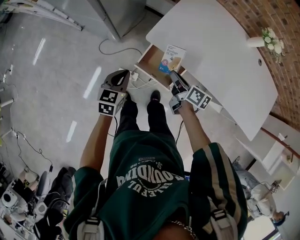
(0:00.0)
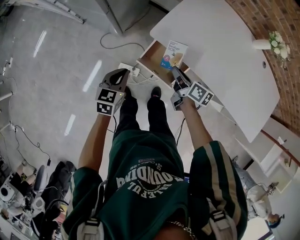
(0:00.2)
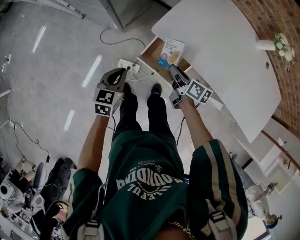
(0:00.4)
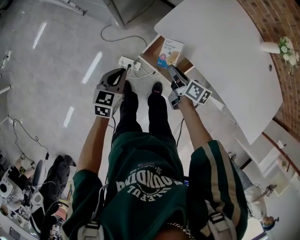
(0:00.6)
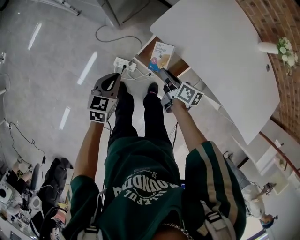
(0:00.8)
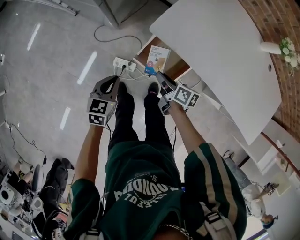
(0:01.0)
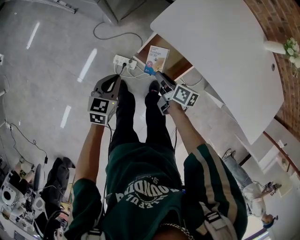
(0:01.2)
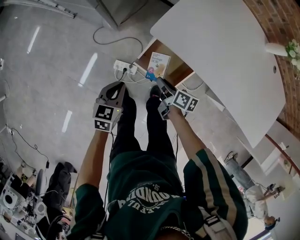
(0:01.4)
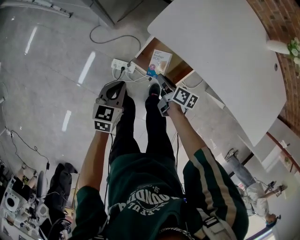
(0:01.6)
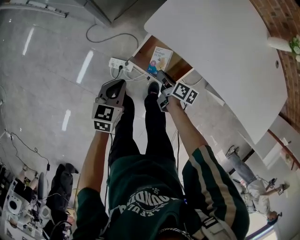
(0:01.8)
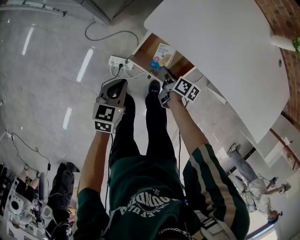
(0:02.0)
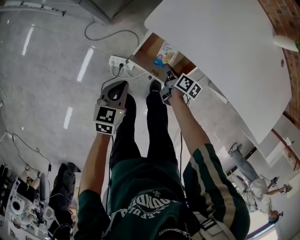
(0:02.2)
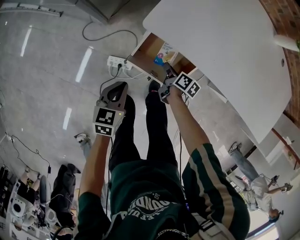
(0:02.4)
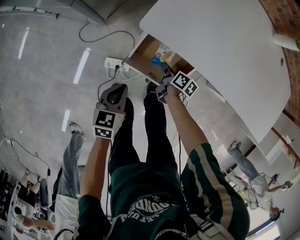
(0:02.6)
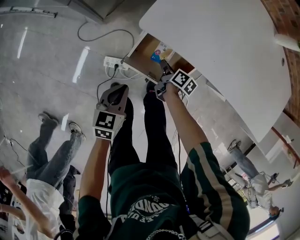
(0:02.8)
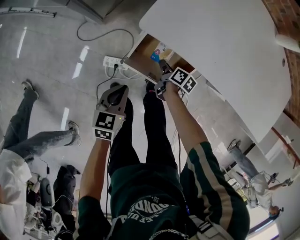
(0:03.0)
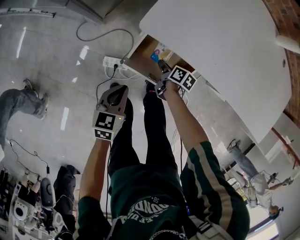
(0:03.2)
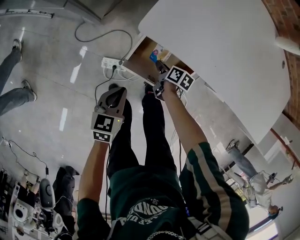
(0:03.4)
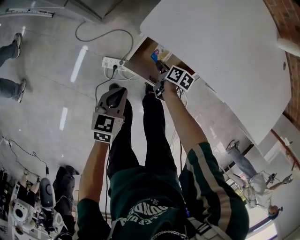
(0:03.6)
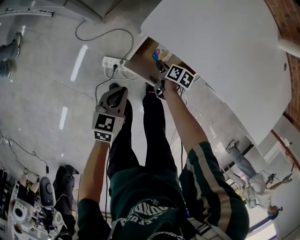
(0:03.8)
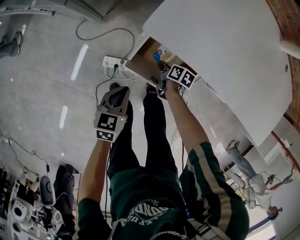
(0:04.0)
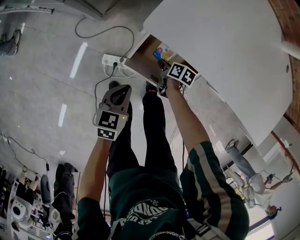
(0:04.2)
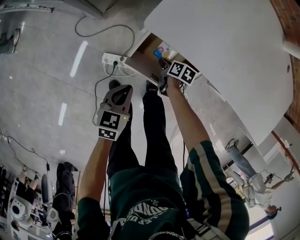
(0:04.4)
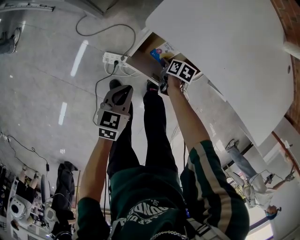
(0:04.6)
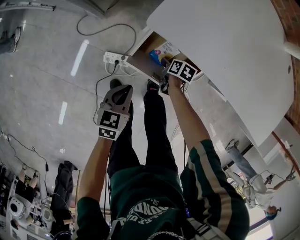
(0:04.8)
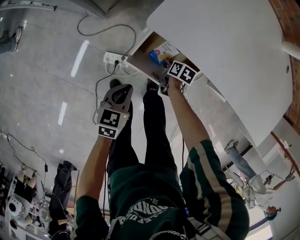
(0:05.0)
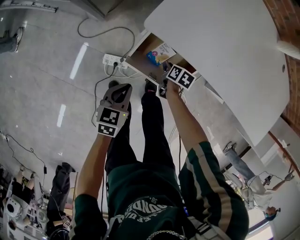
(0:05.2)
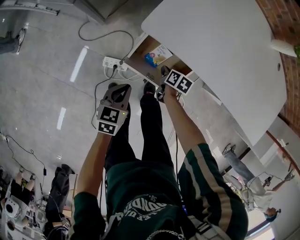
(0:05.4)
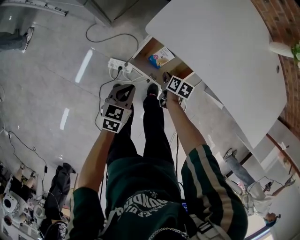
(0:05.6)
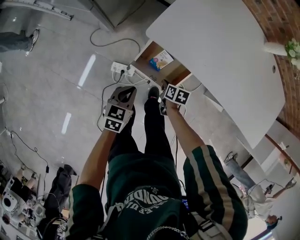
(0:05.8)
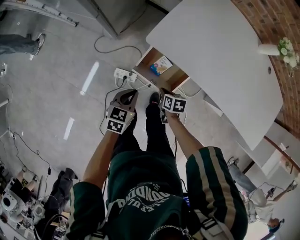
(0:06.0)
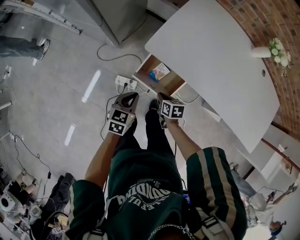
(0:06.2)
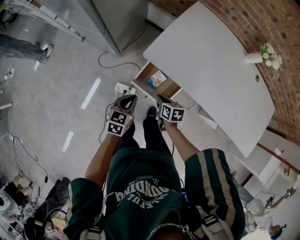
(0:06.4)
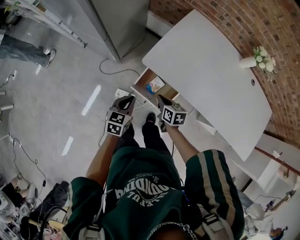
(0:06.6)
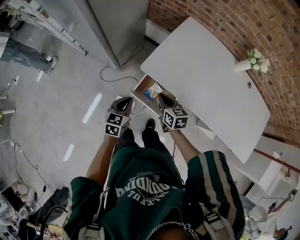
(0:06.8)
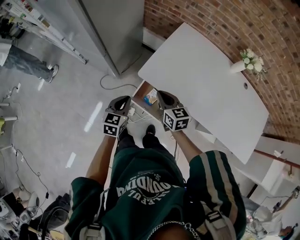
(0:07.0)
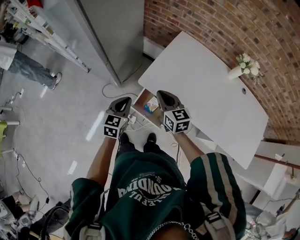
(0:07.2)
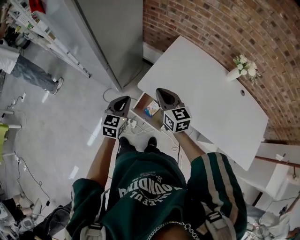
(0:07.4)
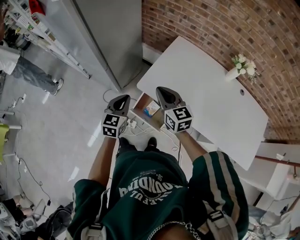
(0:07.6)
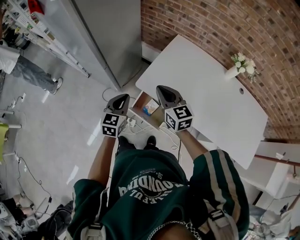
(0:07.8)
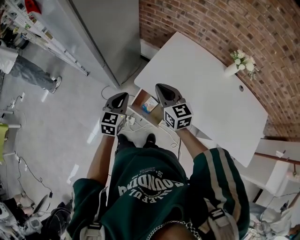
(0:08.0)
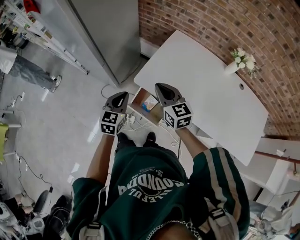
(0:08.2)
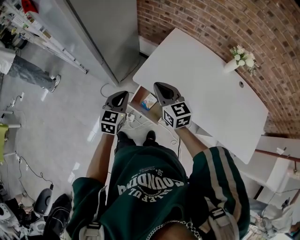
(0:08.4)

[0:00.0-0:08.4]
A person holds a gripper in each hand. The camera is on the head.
0:00.0 to 0:01.4: Both grippers move downward, roughly 15 cm.
0:01.4 to 0:02.8: The right gripper moves downward, to the right and forward, roughly 15 cm, and rotates some 20 degrees. The left gripper shifts approximately 5 cm downward.
0:02.8 to 0:04.2: The right gripper is displaced downward by some 5 cm.
0:04.2 to 0:05.6: The right gripper is displaced upward by some 10 cm, and closes. The left gripper changes place by roughly 5 cm.
0:05.6 to 0:07.0: The right gripper travels upward by some 35 cm, and tilts its fingers approximately 30 degrees upward, while the left gripper shifts some 20 cm upward, and rotates about 20 degrees.
0:07.0 to 0:08.4: The right gripper shifts about 10 cm upward, while the left gripper is displaced upward by approximately 5 cm.

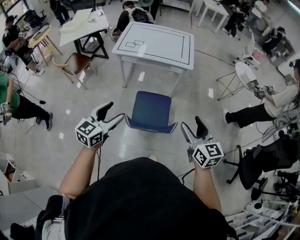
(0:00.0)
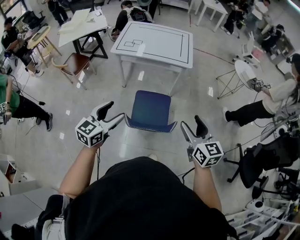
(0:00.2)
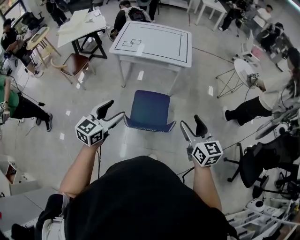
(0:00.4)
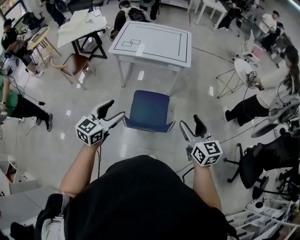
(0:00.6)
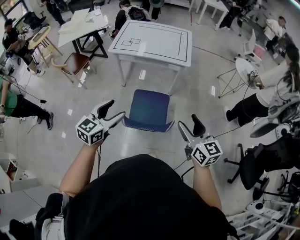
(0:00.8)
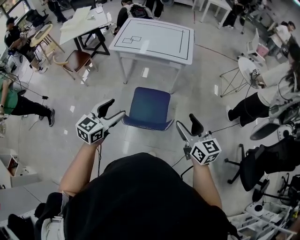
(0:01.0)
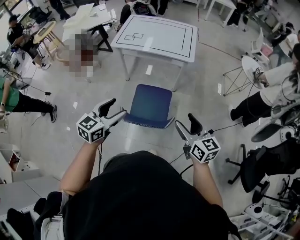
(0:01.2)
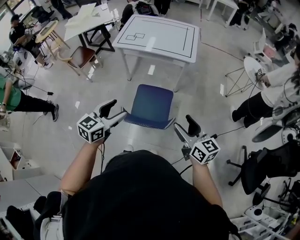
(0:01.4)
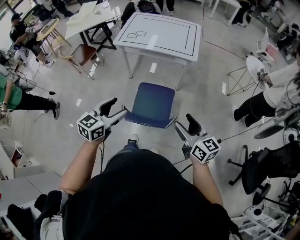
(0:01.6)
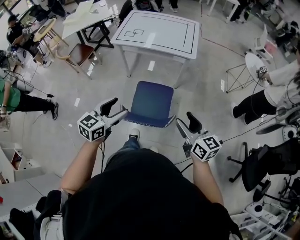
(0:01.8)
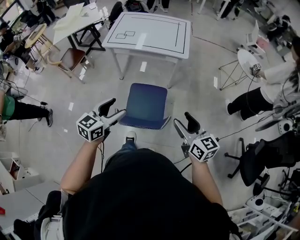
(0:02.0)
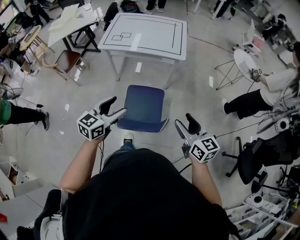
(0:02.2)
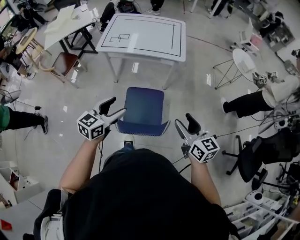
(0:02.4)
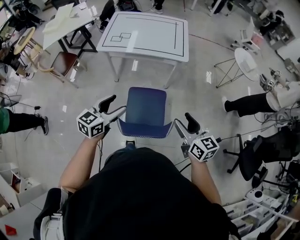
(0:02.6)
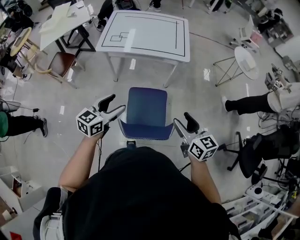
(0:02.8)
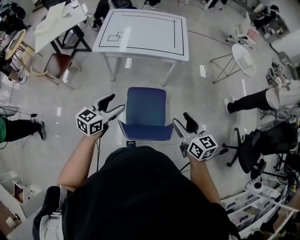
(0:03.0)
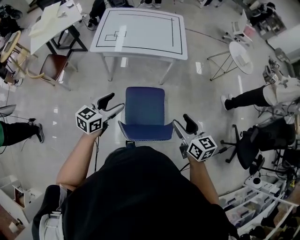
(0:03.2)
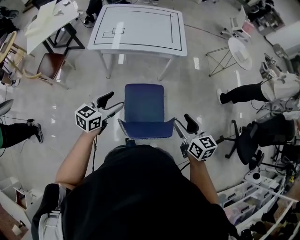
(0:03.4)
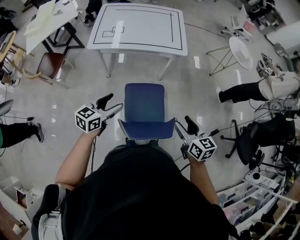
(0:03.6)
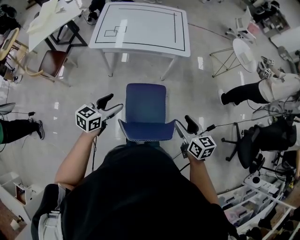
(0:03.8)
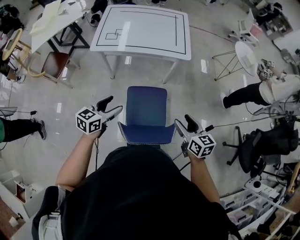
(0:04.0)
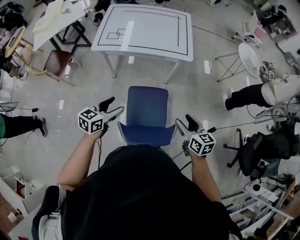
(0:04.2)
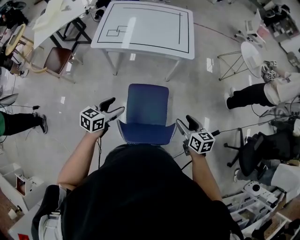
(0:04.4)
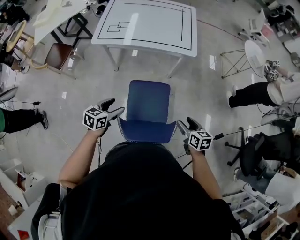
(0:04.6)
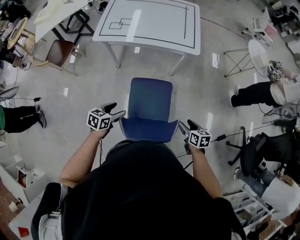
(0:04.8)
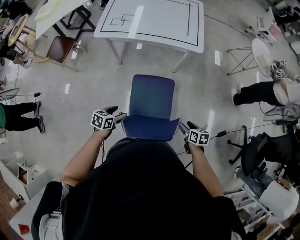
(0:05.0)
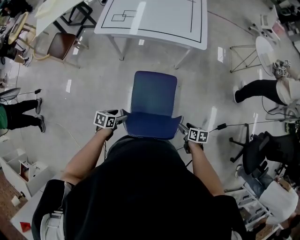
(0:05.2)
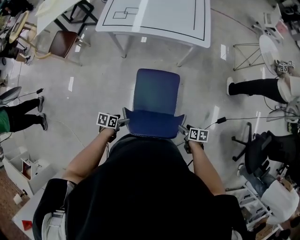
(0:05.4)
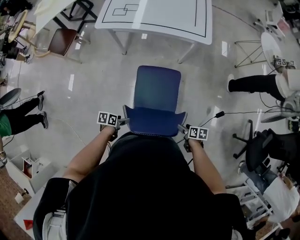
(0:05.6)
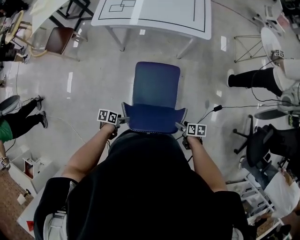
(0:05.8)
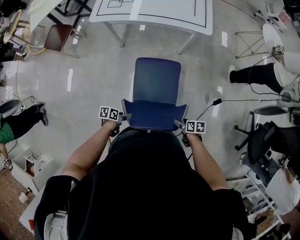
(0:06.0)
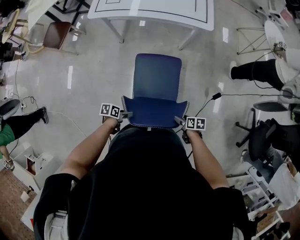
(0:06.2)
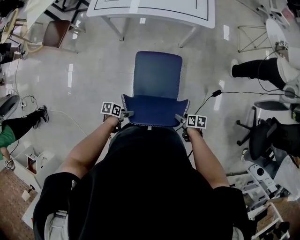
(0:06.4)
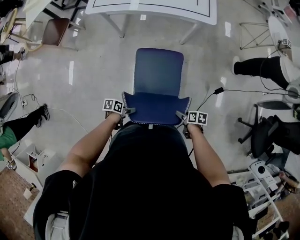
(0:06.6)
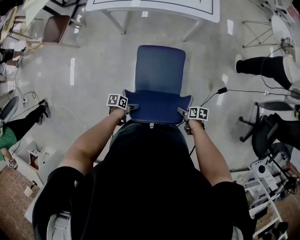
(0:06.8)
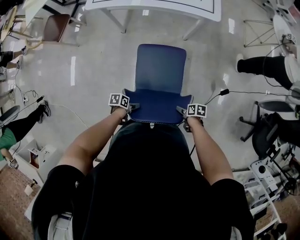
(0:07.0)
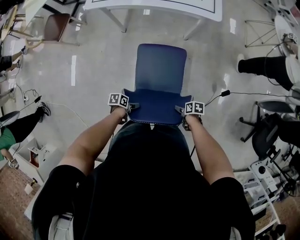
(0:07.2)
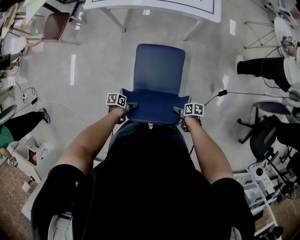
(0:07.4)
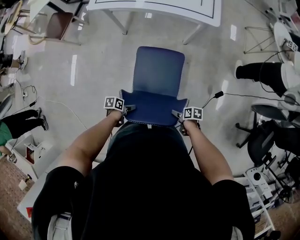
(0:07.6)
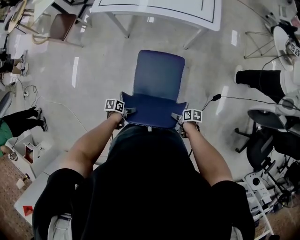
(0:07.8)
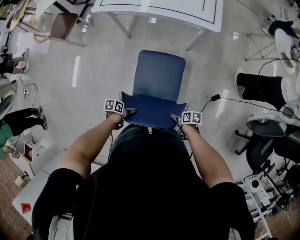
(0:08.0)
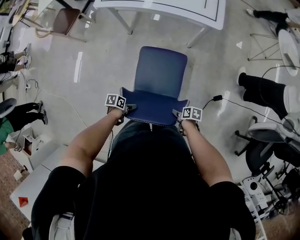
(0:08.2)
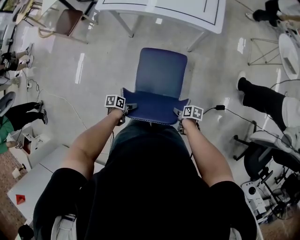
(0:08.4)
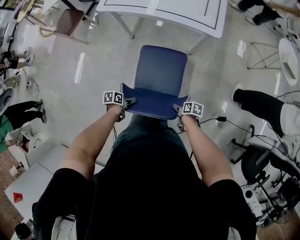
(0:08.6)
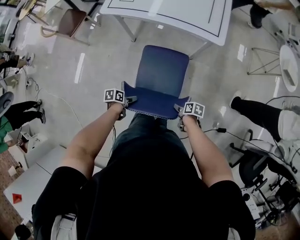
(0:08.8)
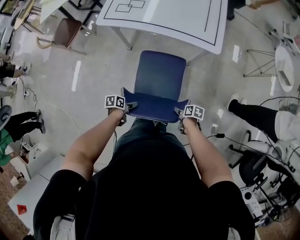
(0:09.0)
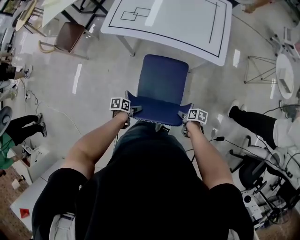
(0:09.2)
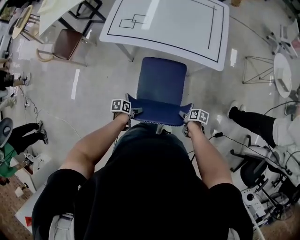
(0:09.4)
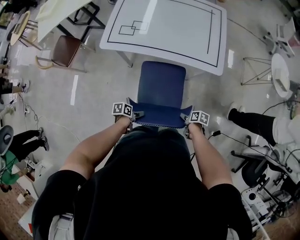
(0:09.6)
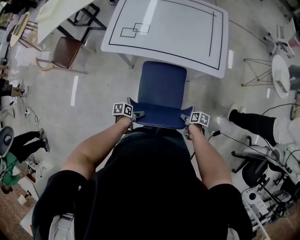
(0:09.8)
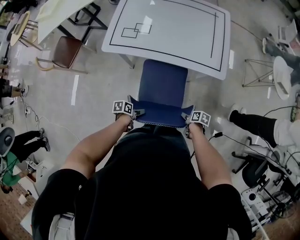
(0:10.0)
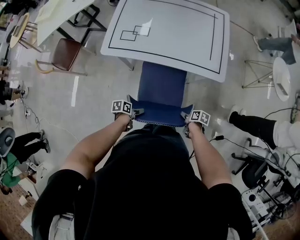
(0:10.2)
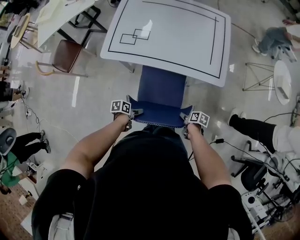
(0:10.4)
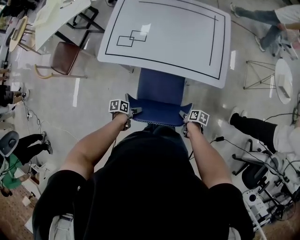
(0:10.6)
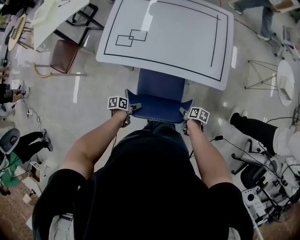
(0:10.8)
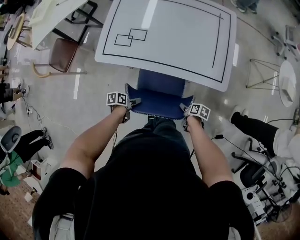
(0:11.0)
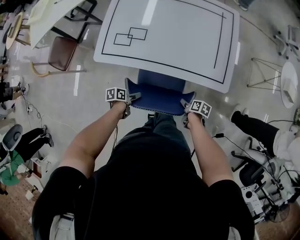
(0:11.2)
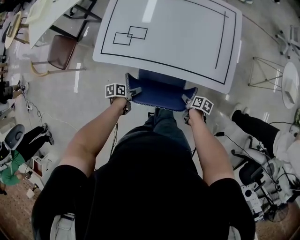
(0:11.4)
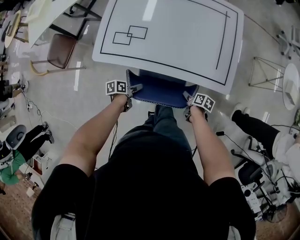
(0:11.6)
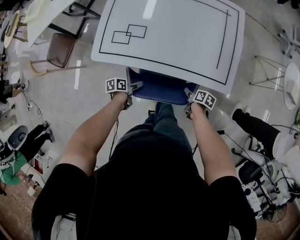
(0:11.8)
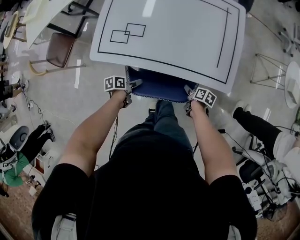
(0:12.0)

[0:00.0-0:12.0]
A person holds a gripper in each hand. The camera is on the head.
0:00.0 to 0:01.6: The right gripper is displaced downward by roughly 5 cm, and turns by roughly 20 degrees, while the left gripper heads to the right, covering approximately 10 cm.
0:01.6 to 0:03.0: Both grippers travel together forward and to the left, some 15 cm.
0:03.0 to 0:04.4: The right gripper travels downward, forward and to the right by about 15 cm. The left gripper heads downward, covering roughly 10 cm.
0:04.4 to 0:06.0: Both grippers travel together downward, roughly 30 cm. The right gripper swivels some 40 degrees; the left gripper rotates about 60 degrees.
0:06.0 to 0:07.6: Both grippers travel together downward, about 5 cm.
0:07.6 to 0:09.0: The right gripper moves about 15 cm. The left gripper changes place by some 15 cm.
0:09.0 to 0:10.4: The right gripper shifts by roughly 15 cm. The left gripper moves roughly 20 cm.
0:10.4 to 0:12.0: The right gripper shifts by roughly 20 cm; the left gripper changes place by about 20 cm.

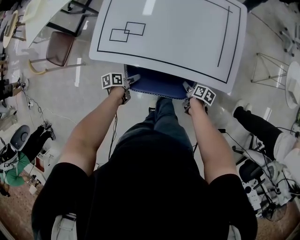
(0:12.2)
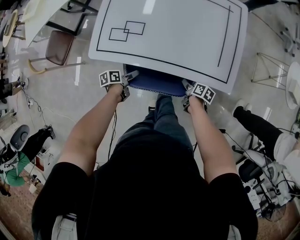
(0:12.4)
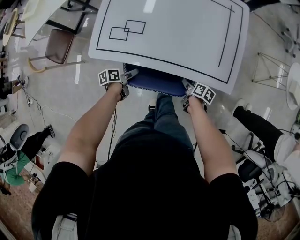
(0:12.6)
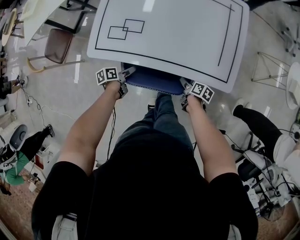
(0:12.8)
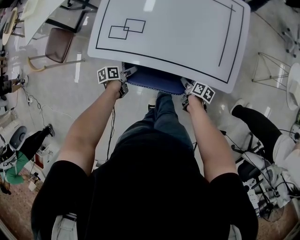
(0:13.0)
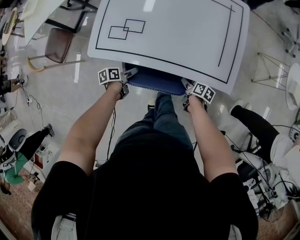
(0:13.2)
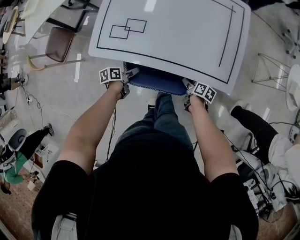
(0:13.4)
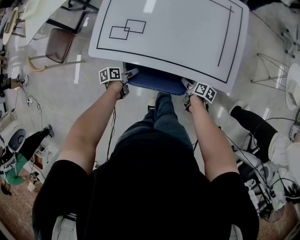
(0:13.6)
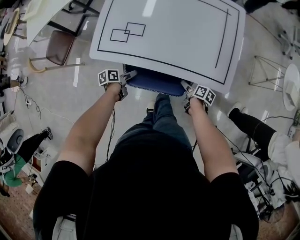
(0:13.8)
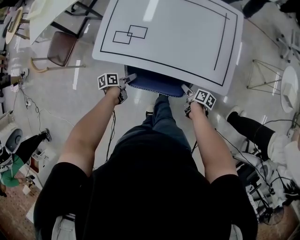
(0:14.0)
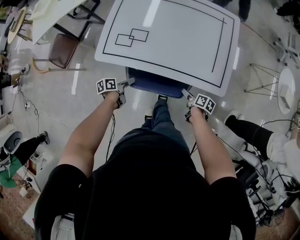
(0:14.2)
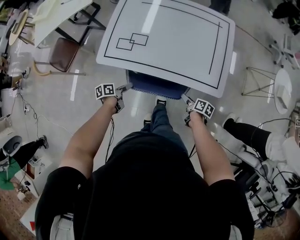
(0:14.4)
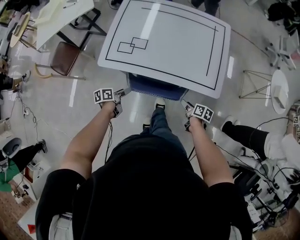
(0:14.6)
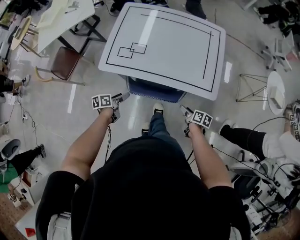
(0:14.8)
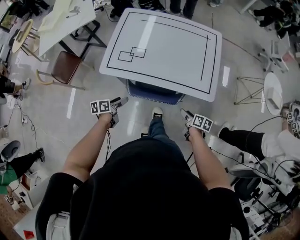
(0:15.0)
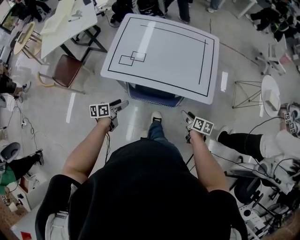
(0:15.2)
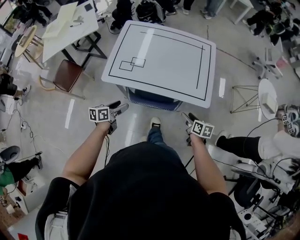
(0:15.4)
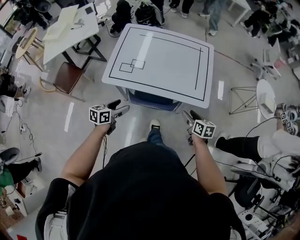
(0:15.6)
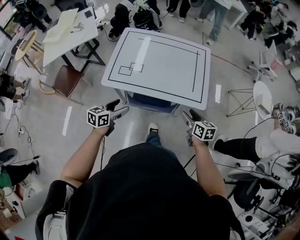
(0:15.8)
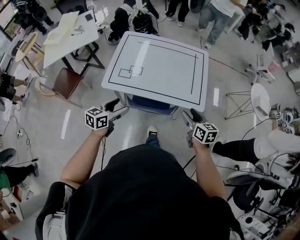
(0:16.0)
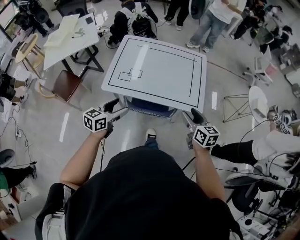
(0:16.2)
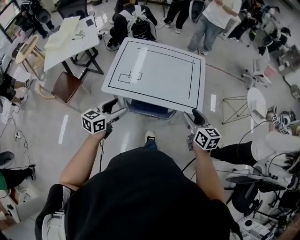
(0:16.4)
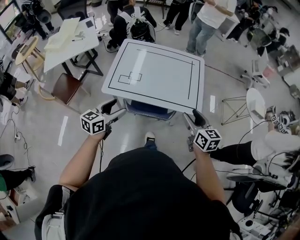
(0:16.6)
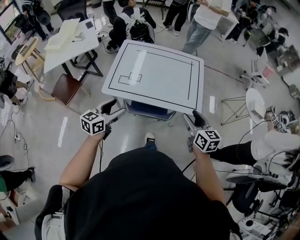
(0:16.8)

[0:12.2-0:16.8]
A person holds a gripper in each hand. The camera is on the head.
0:12.2 to 0:13.8: The grippers move only a little.
0:13.8 to 0:15.2: The grippers both shift upward and backward by roughly 20 cm. The left gripper changes its angle by approximately 30 degrees; the right gripper swivels approximately 20 degrees.
0:15.2 to 0:16.8: The grippers both shift upward by roughly 25 cm. The left gripper changes its angle by some 40 degrees. The right gripper turns by approximately 40 degrees.
